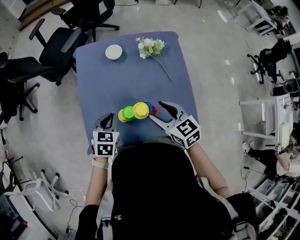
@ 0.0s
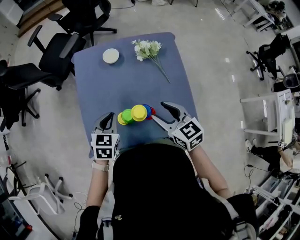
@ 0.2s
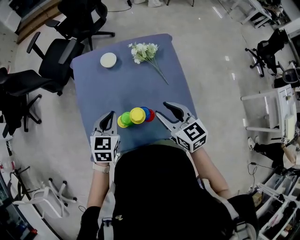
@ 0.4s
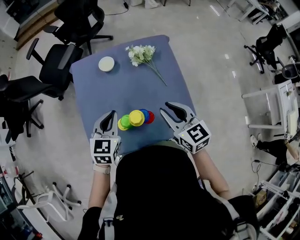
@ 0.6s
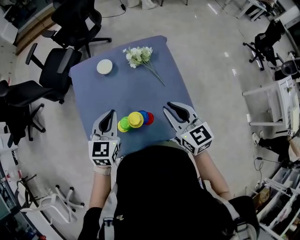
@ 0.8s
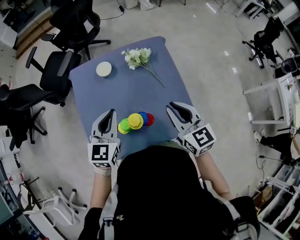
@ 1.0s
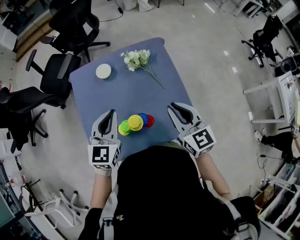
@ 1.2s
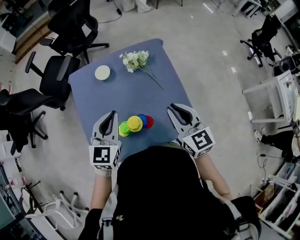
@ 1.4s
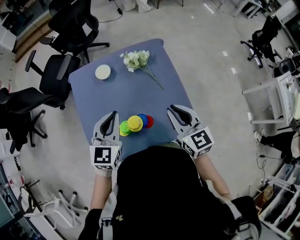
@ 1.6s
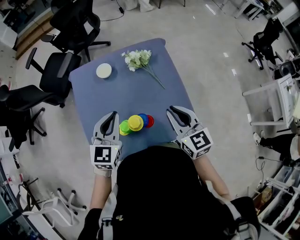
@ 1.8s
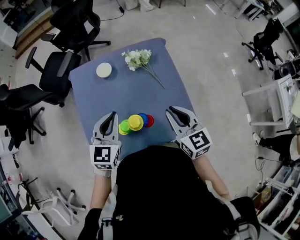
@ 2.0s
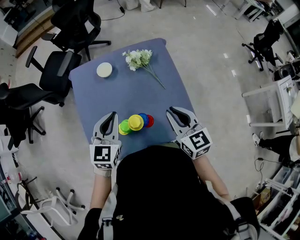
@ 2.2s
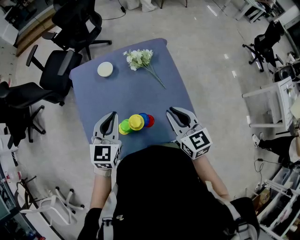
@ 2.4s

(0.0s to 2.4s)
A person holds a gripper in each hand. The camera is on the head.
0.0s - 1.2s: The left gripper shifts some 20 cm upward and to the right, and angles its fingers upward, by roughly 30 degrees. The right gripper travels to the right and upward by some 15 cm, rotates about 30 degrees, and closes up.
1.2s - 2.4s: The grippers move only a little.

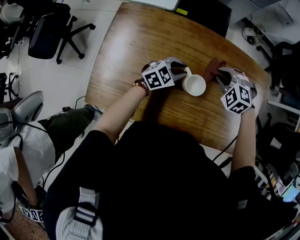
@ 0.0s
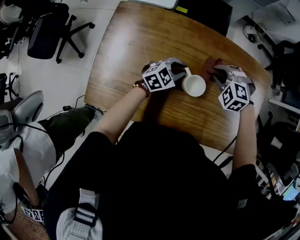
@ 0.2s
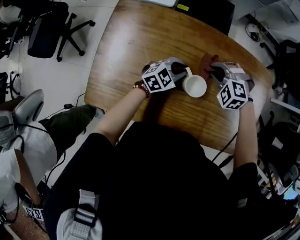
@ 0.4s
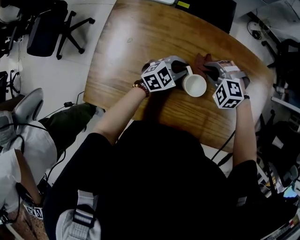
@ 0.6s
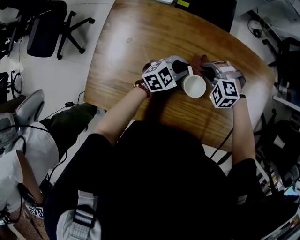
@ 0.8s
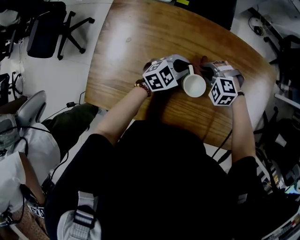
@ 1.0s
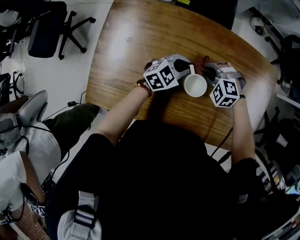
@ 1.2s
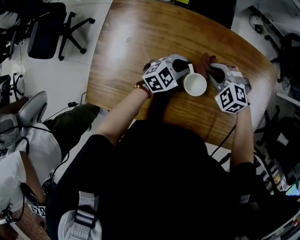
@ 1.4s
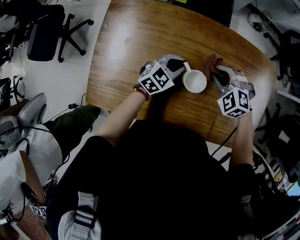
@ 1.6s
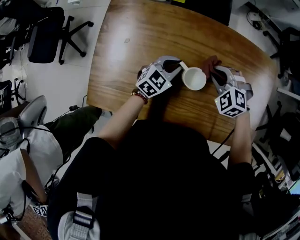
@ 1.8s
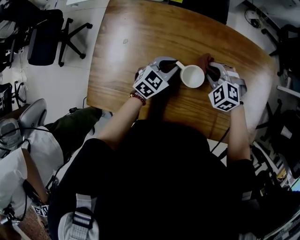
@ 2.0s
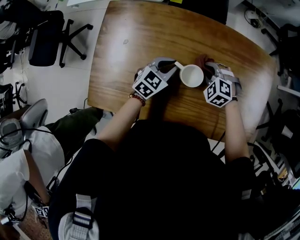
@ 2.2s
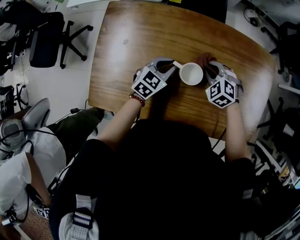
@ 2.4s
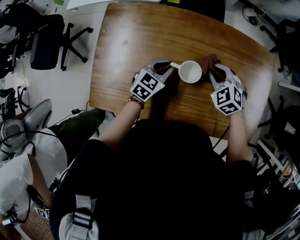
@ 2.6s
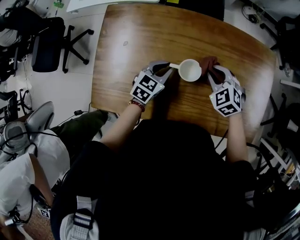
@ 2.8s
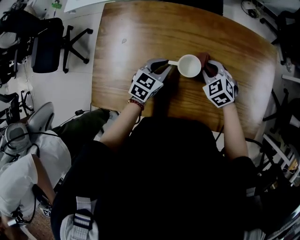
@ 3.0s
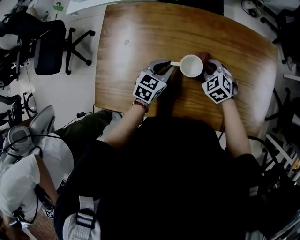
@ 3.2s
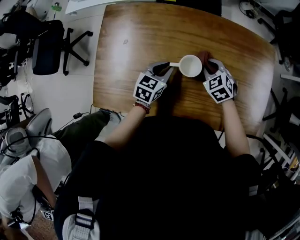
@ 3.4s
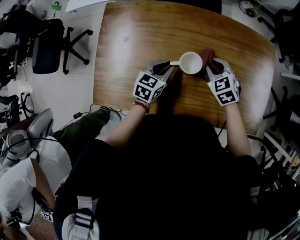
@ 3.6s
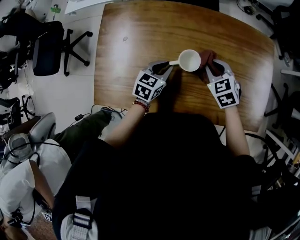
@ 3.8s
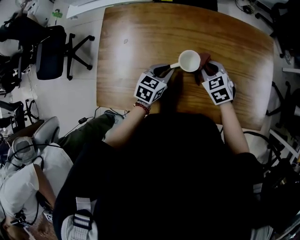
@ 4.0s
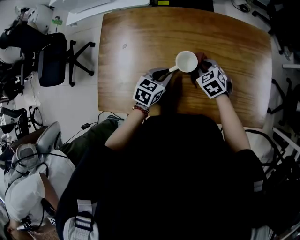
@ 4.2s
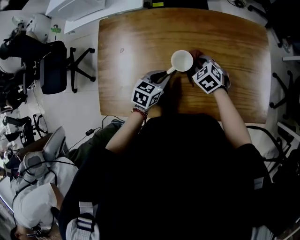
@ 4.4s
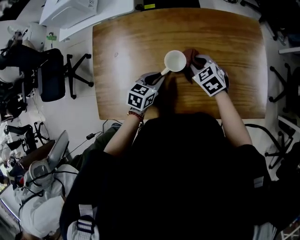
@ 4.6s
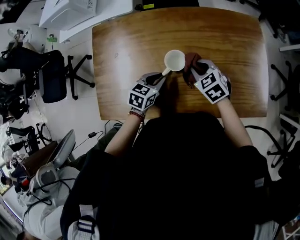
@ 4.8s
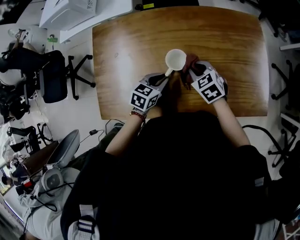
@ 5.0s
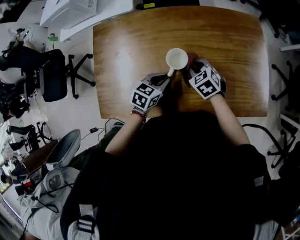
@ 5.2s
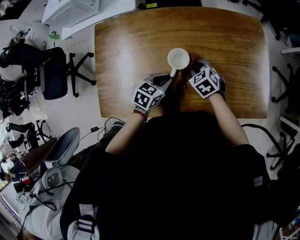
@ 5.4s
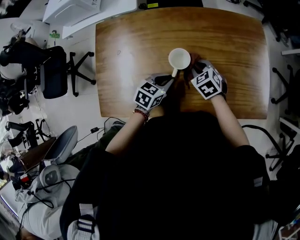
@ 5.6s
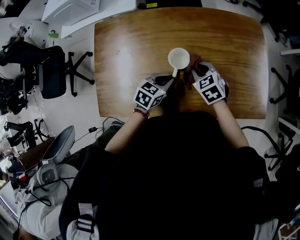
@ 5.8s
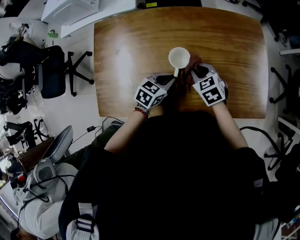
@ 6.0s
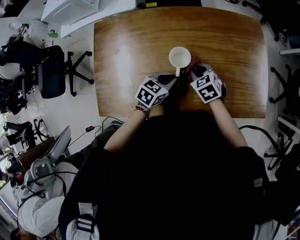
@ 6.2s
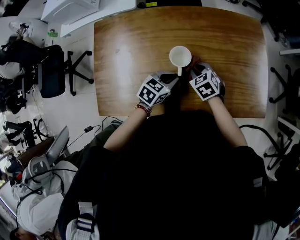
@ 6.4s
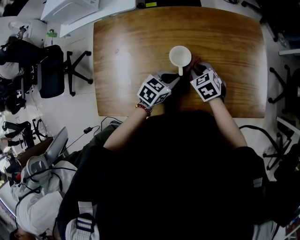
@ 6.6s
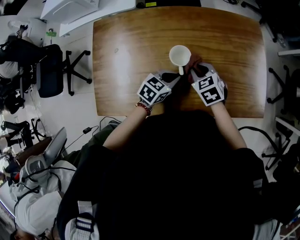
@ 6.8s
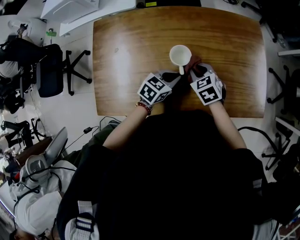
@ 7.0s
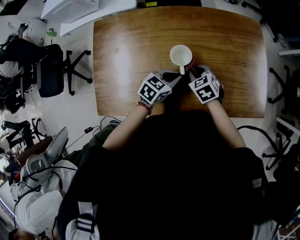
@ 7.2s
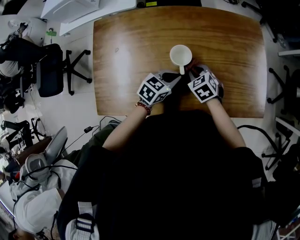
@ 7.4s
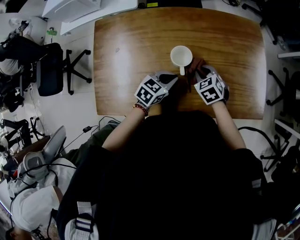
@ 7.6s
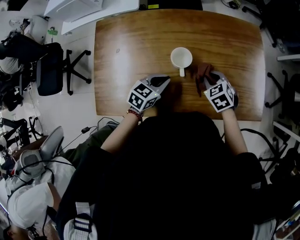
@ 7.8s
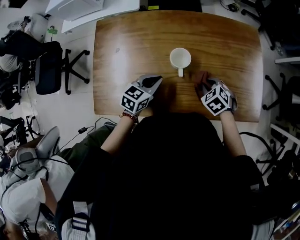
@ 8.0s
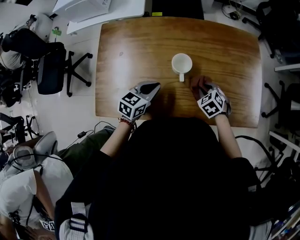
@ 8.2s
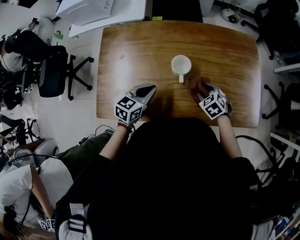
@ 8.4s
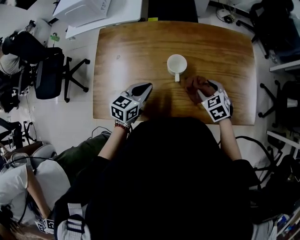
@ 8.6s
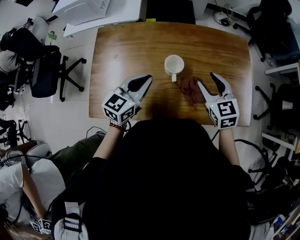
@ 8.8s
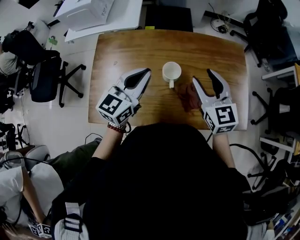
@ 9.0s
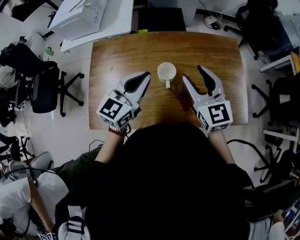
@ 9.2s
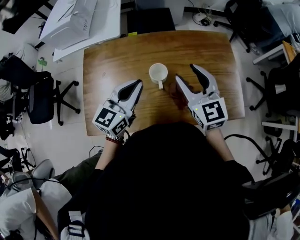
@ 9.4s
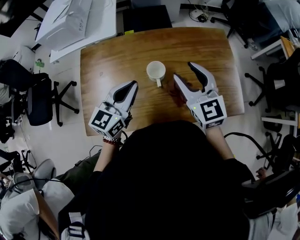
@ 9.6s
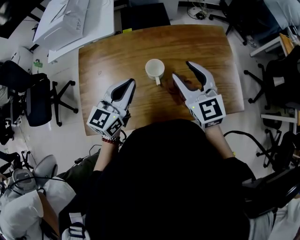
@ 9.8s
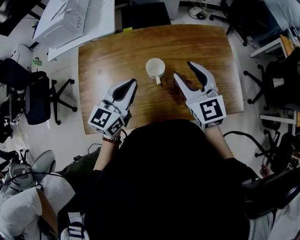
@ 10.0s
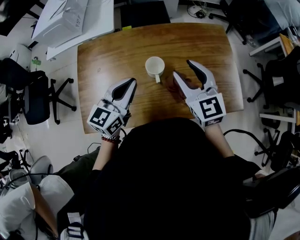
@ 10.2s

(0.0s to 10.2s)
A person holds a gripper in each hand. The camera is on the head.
1.4s - 3.0s: The right gripper moves up and down over some 5 cm, changing direction 2 times, and changes its angle by some 30 degrees. The left gripper moves to the left, approximately 5 cm, and rotates some 20 degrees.
3.0s - 4.4s: The left gripper travels backward by about 5 cm.
4.4s - 5.8s: The right gripper moves up and down over about 5 cm, changing direction 2 times.
5.8s - 7.2s: The right gripper swings up and down, some 5 cm each way, with 2 reversals.
7.2s - 8.8s: The left gripper moves upward and to the left, about 15 cm, and changes its angle by some 30 degrees; the right gripper shifts some 20 cm upward and to the right, rotates approximately 30 degrees, and opens its fingers.
8.8s - 10.2s: The right gripper goes approximately 10 cm upward.

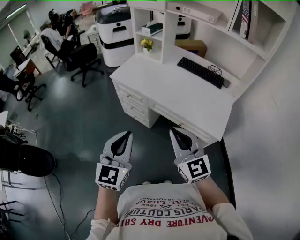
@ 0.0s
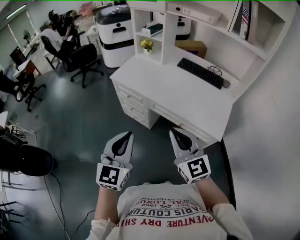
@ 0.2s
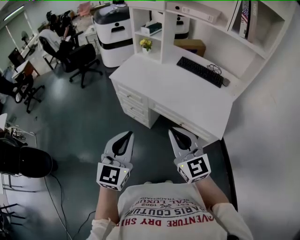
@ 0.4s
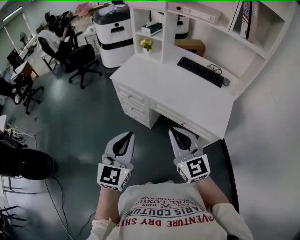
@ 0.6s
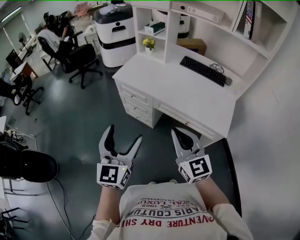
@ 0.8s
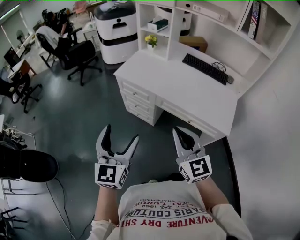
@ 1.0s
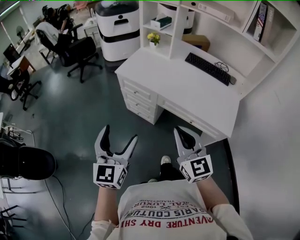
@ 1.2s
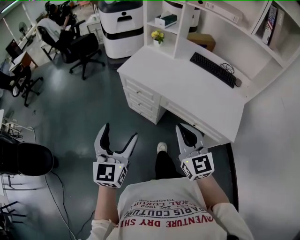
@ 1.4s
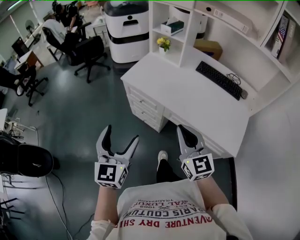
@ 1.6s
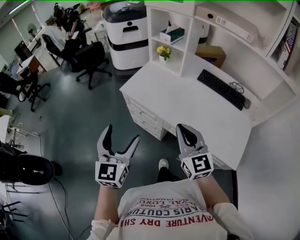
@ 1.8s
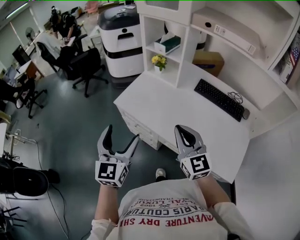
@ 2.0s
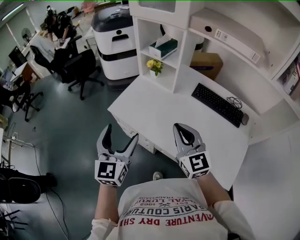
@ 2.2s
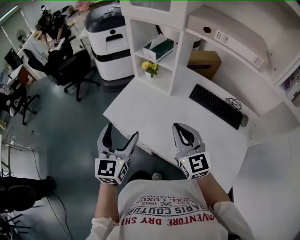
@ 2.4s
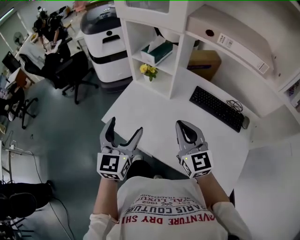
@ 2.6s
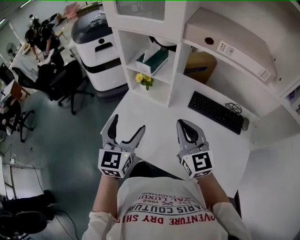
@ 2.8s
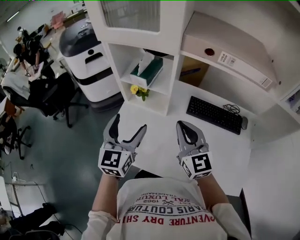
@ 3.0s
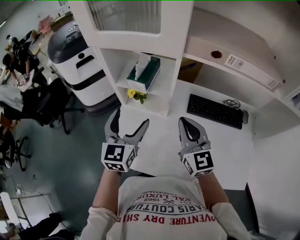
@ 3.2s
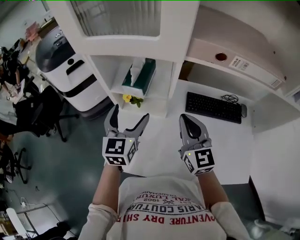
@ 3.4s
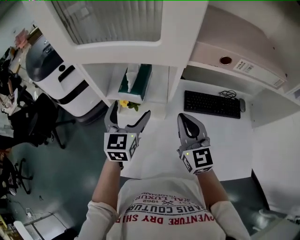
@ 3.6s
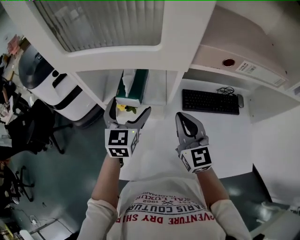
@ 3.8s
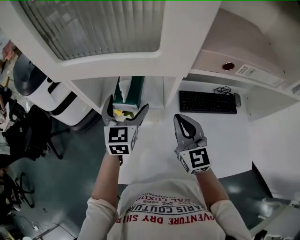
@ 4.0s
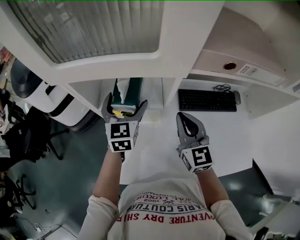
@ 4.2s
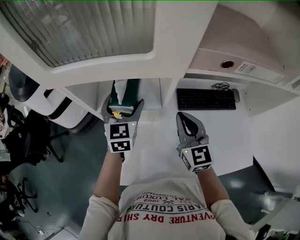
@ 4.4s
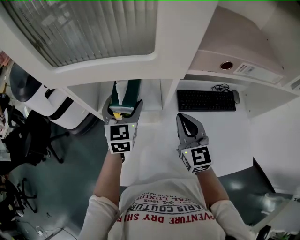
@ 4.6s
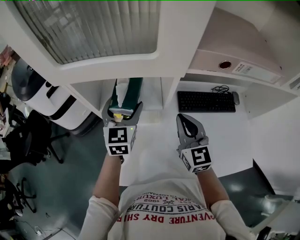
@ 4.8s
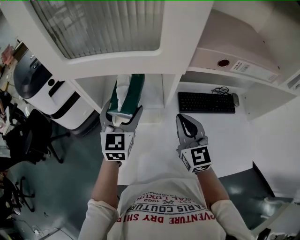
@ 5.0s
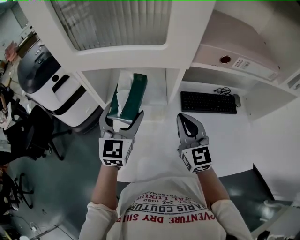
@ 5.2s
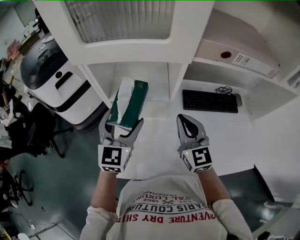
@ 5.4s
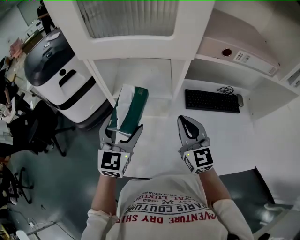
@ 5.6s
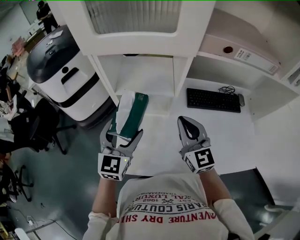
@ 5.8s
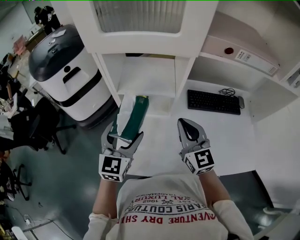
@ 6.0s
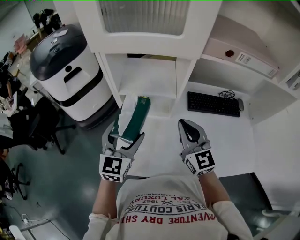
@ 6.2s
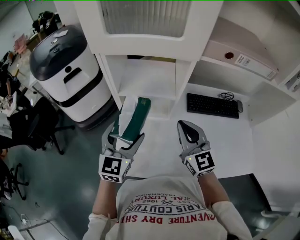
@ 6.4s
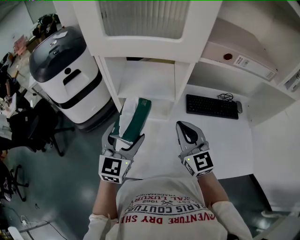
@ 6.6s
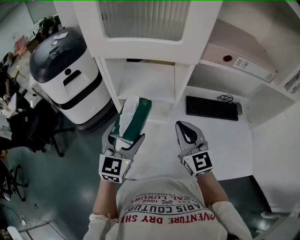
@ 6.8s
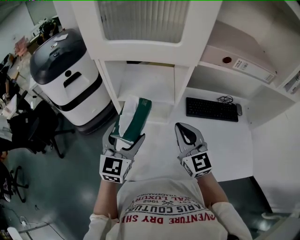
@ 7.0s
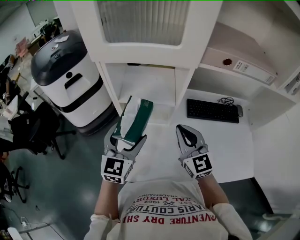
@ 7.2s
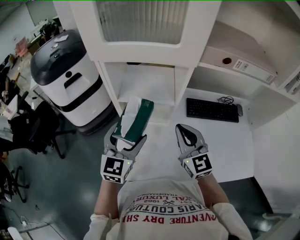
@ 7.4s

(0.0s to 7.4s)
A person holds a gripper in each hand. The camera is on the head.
0.0s - 1.4s: The left gripper is displaced to the left and forward by roughly 15 cm, and opens. Meanwhile the right gripper goes about 10 cm forward and to the left.
1.4s - 3.0s: The two grippers travel together, forward, about 50 cm.
3.0s - 4.4s: The right gripper travels forward by some 10 cm, and rotates about 30 degrees; the left gripper is displaced forward by approximately 25 cm.
4.4s - 6.0s: The left gripper moves backward, approximately 20 cm; the right gripper goes approximately 10 cm backward and to the left.
6.0s - 7.4s: The grippers make only small movements.

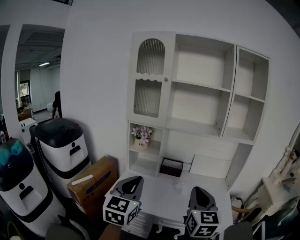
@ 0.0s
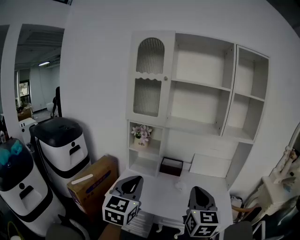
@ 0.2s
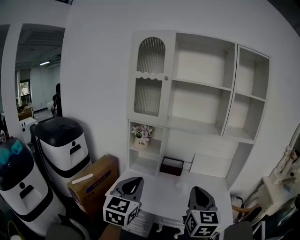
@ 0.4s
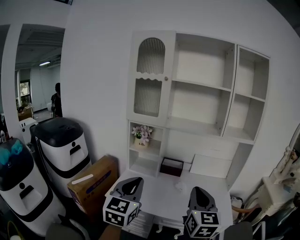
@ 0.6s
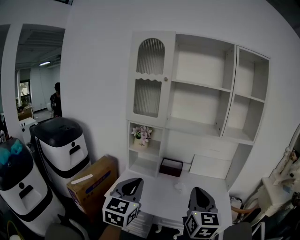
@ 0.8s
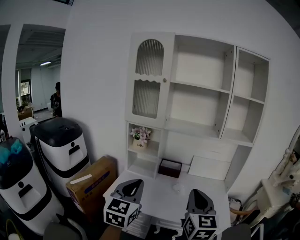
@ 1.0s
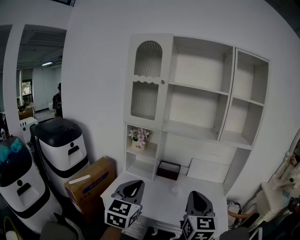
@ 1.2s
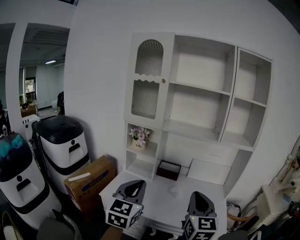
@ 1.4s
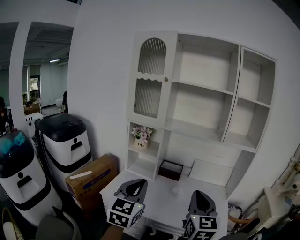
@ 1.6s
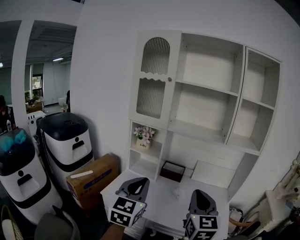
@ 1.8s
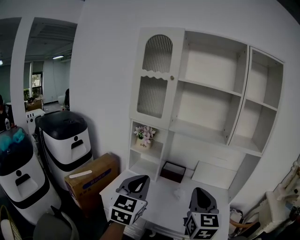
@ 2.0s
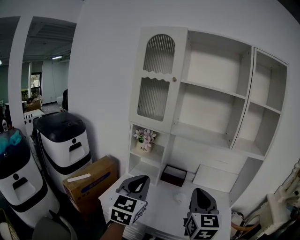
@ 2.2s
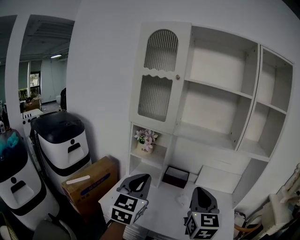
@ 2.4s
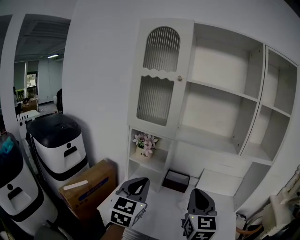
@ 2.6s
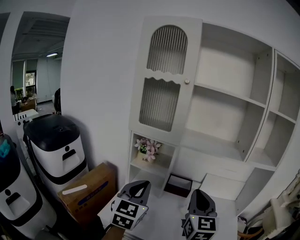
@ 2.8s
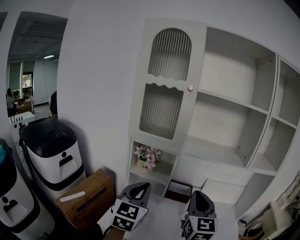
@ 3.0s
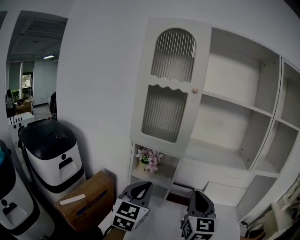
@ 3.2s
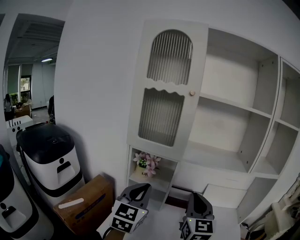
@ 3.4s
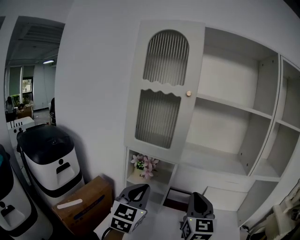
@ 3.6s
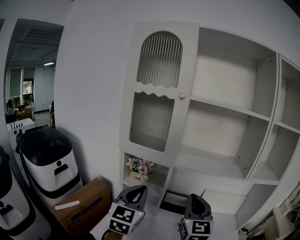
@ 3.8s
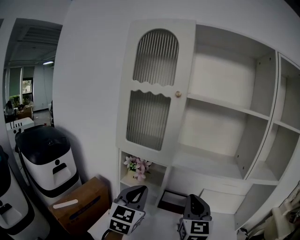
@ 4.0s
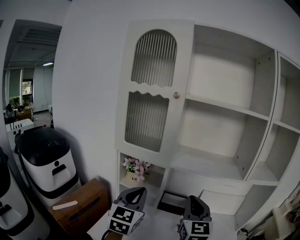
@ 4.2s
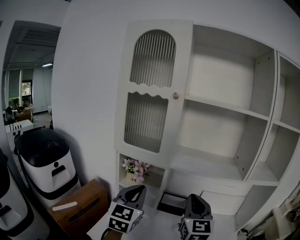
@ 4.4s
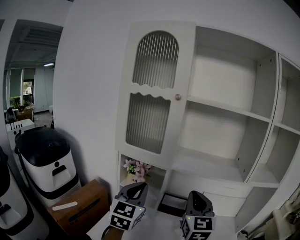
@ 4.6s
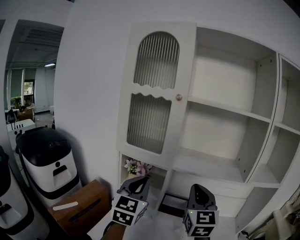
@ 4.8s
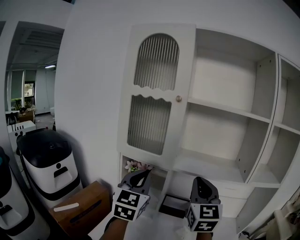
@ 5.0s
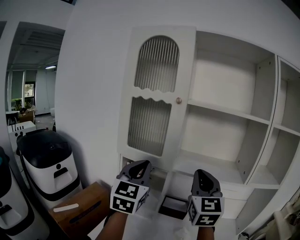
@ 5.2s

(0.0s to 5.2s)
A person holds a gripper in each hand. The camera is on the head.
0.0s - 1.8s: The left gripper is displaced to the right by approximately 5 cm; the right gripper shifts by some 5 cm.
1.8s - 3.4s: Both grippers travel together forward and to the left, some 25 cm.
3.4s - 5.2s: The grippers both shift upward and forward by roughly 15 cm.
